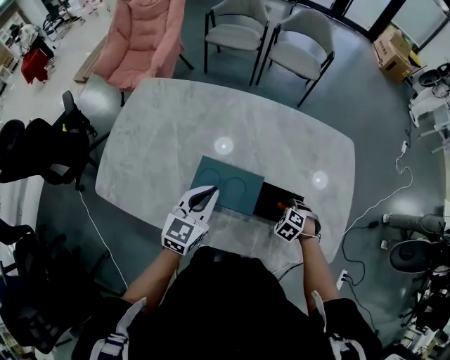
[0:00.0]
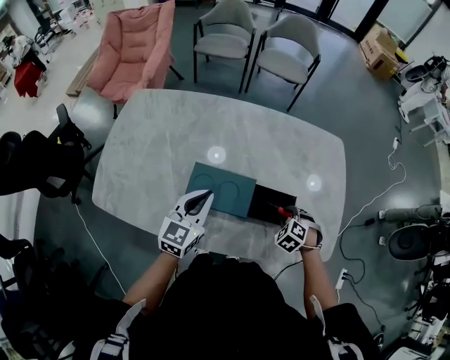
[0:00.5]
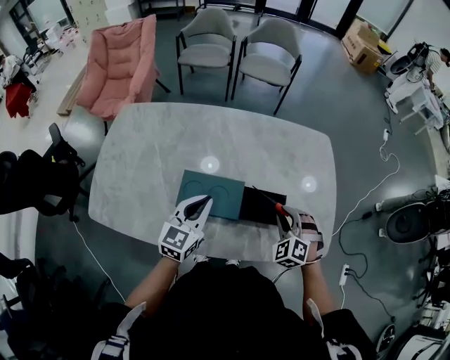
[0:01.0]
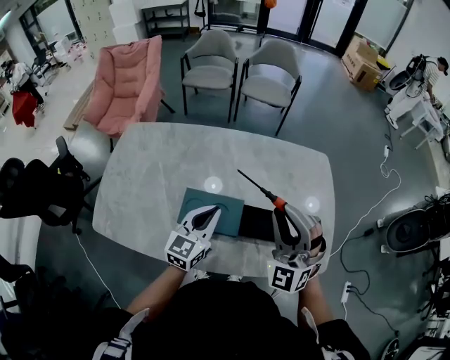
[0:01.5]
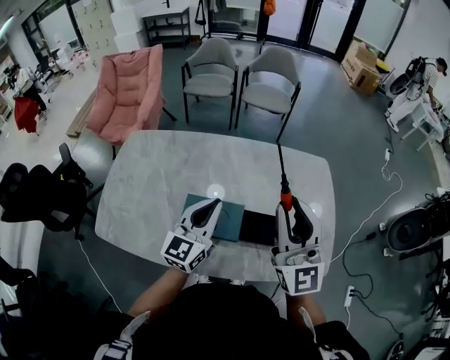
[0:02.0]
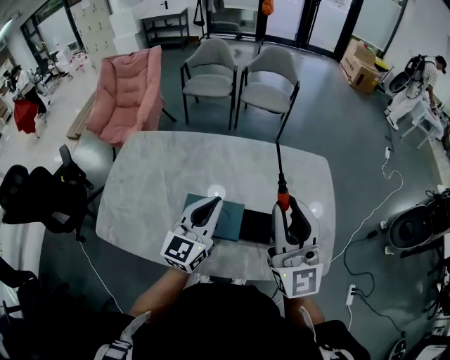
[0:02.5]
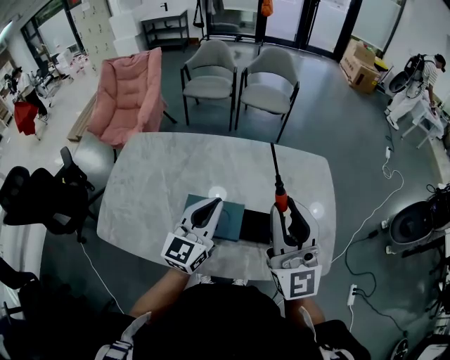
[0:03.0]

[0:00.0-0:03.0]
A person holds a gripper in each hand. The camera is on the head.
0:00.0 to 0:01.5: The left gripper ends up about 5 cm from where it was; the right gripper heads upward, covering about 40 cm, and tips its fingers upward by roughly 80 degrees.
0:01.5 to 0:03.0: Both grippers travel together upward, some 10 cm. The right gripper rotates around the line of its fingers by about 50 degrees, clockwise from behind.

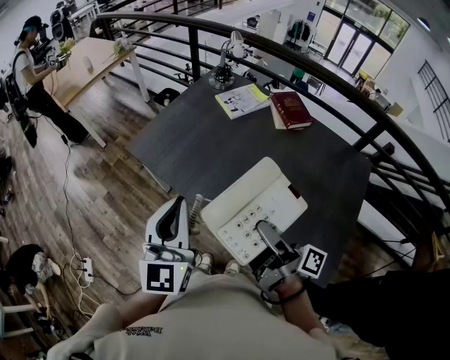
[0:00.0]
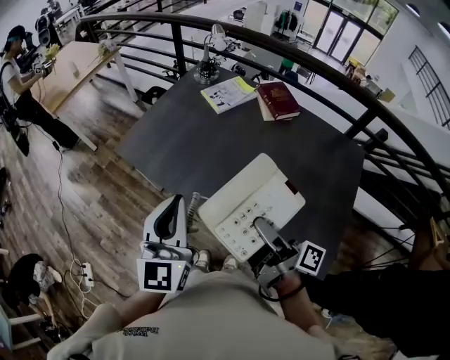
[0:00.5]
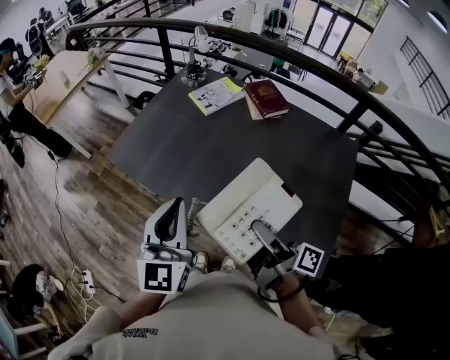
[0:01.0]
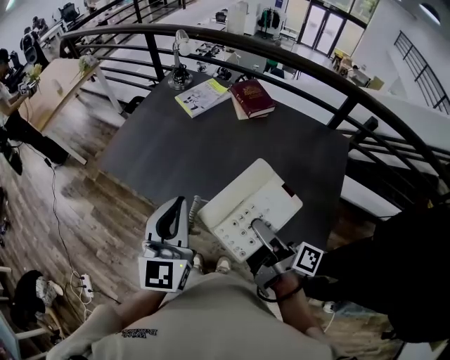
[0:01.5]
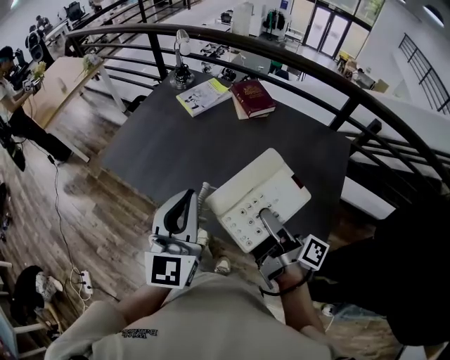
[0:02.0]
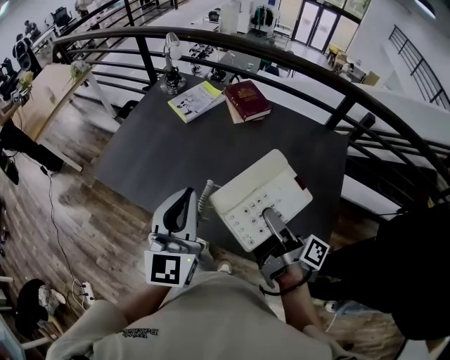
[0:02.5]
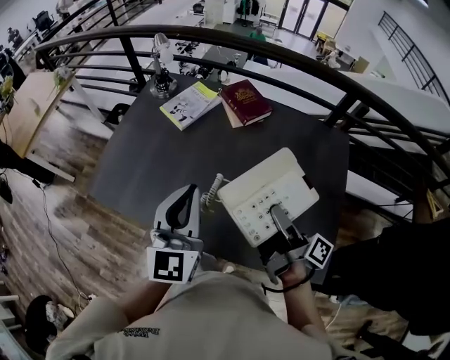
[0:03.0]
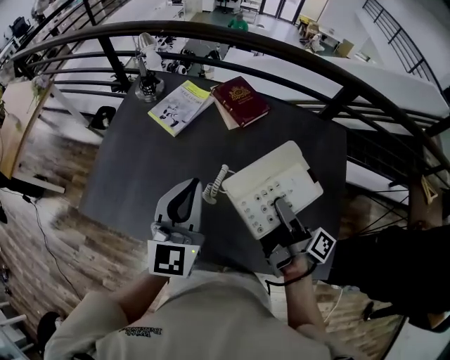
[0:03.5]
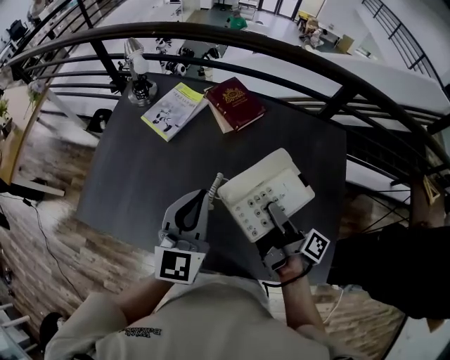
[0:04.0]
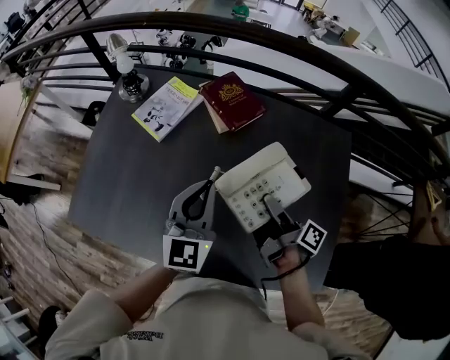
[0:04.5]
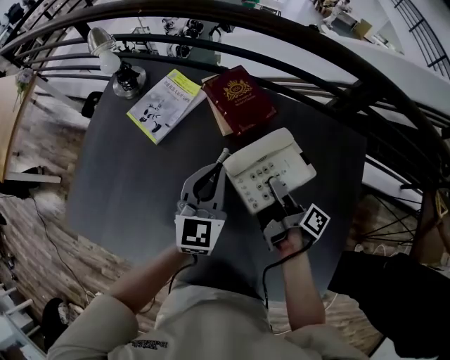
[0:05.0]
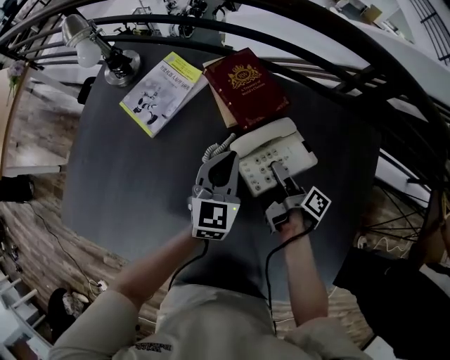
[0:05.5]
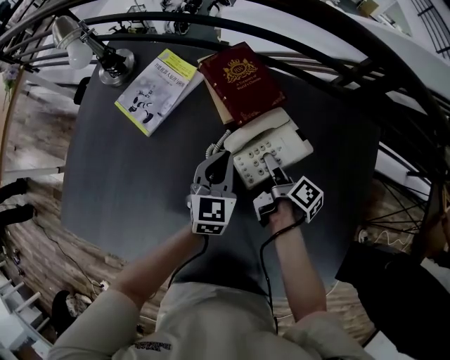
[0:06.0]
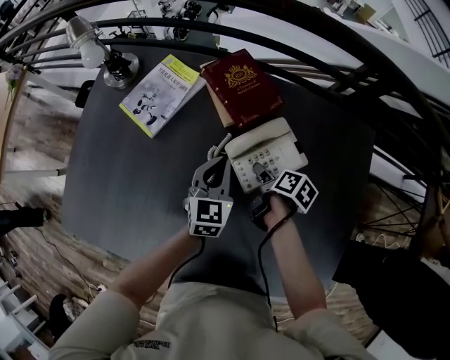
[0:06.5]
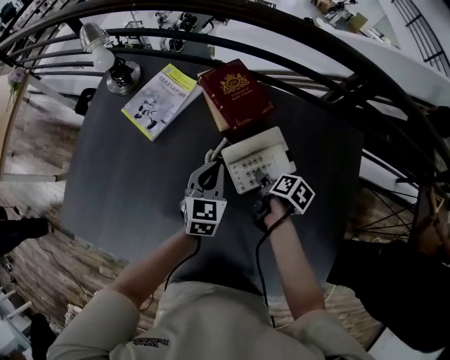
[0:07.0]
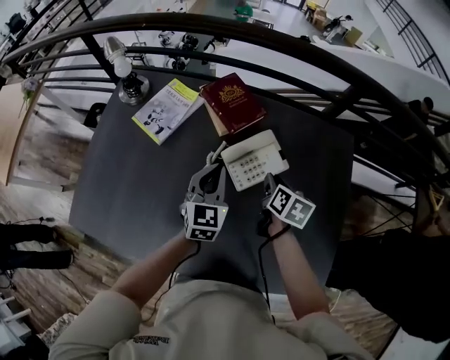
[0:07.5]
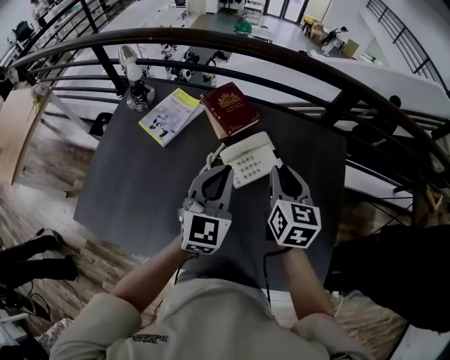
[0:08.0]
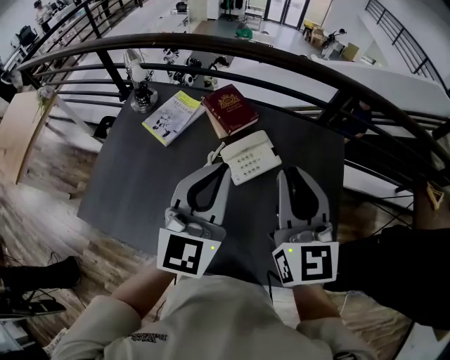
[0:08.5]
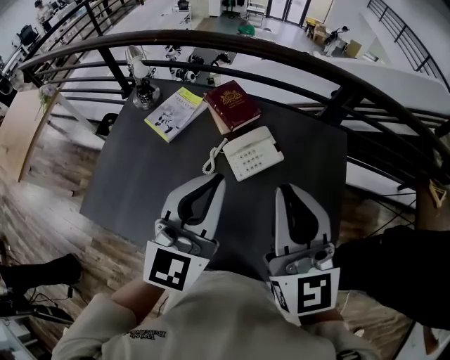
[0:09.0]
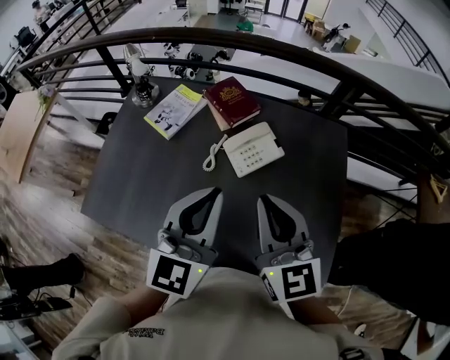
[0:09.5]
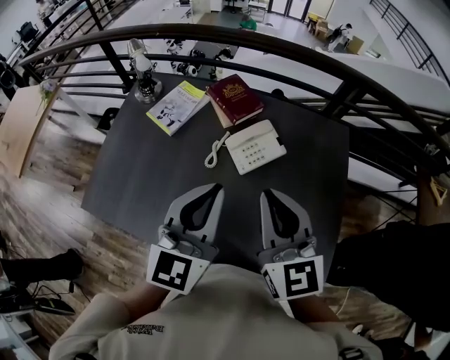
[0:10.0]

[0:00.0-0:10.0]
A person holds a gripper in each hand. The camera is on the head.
0:00.0 to 0:02.0: The two grippers go approximately 15 cm to the right.
0:02.0 to 0:04.0: Both grippers travel together forward, about 20 cm. The right gripper turns by some 20 degrees, while the left gripper turns by some 20 degrees.
0:04.0 to 0:06.0: The right gripper travels forward and downward by roughly 30 cm, and rotates approximately 30 degrees. Meanwhile the left gripper shifts about 30 cm downward and forward, and changes its angle by some 20 degrees.
0:06.0 to 0:08.0: The two grippers go about 25 cm upward and backward. The left gripper rotates some 20 degrees. The right gripper rotates around the line of its fingers by about 70 degrees, counterclockwise from behind, and opens, then closes once more.
0:08.0 to 0:10.0: The right gripper travels backward, upward and to the left by some 20 cm, and rotates roughly 20 degrees. The left gripper moves backward and upward, about 15 cm.

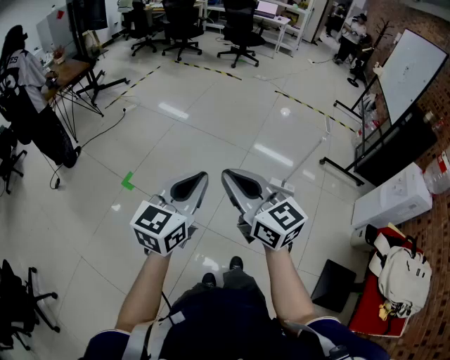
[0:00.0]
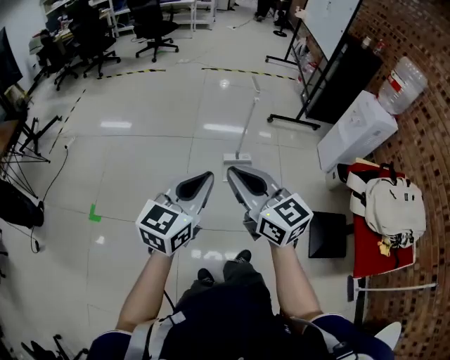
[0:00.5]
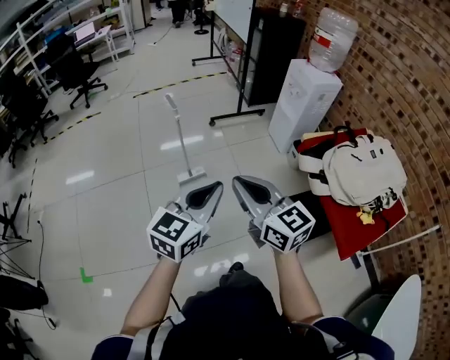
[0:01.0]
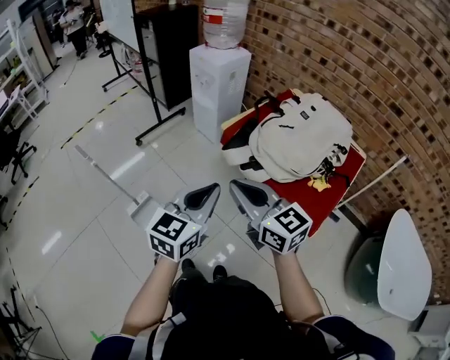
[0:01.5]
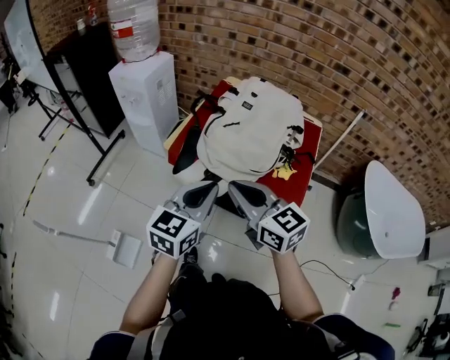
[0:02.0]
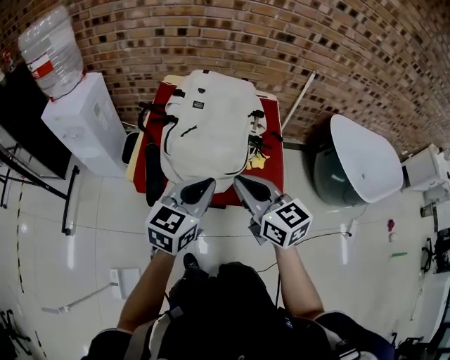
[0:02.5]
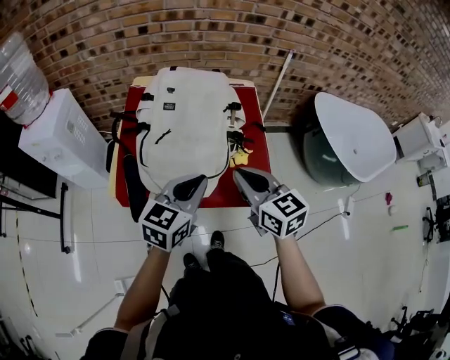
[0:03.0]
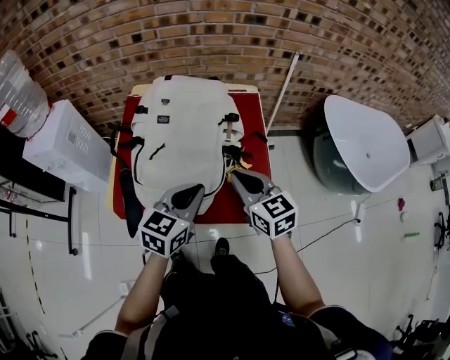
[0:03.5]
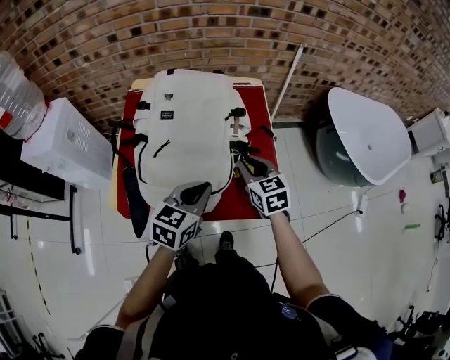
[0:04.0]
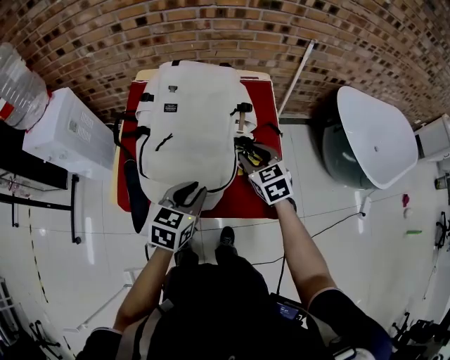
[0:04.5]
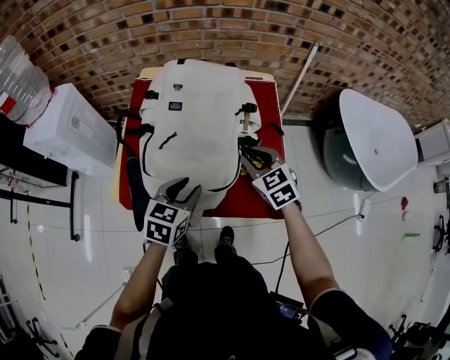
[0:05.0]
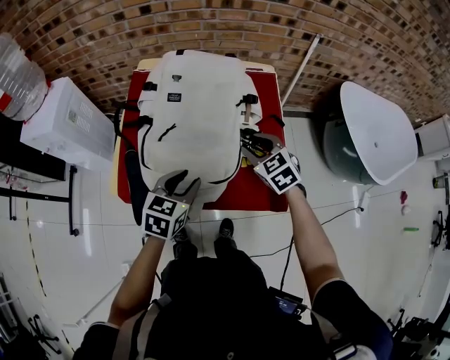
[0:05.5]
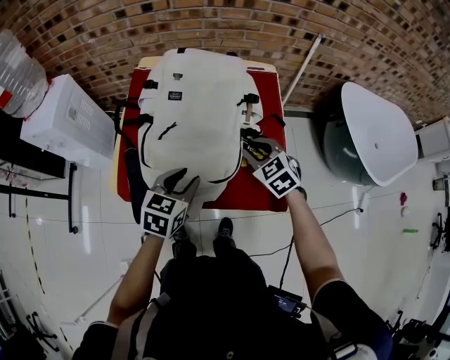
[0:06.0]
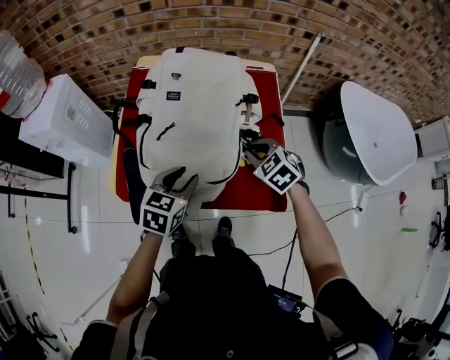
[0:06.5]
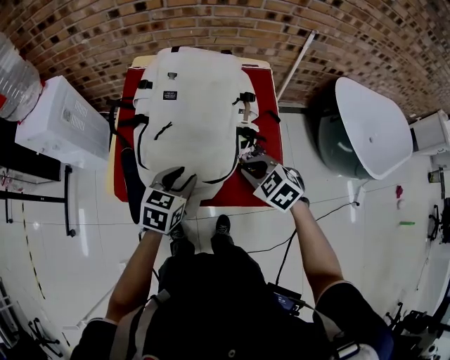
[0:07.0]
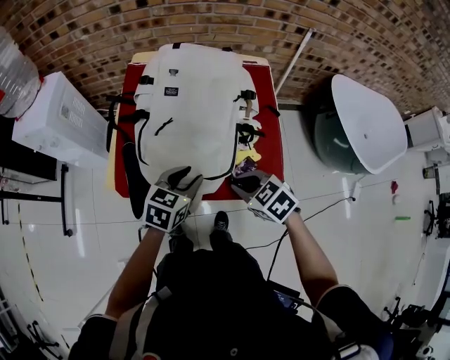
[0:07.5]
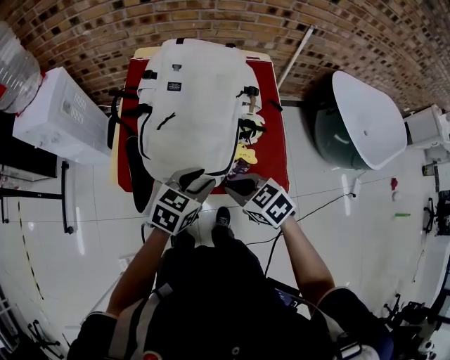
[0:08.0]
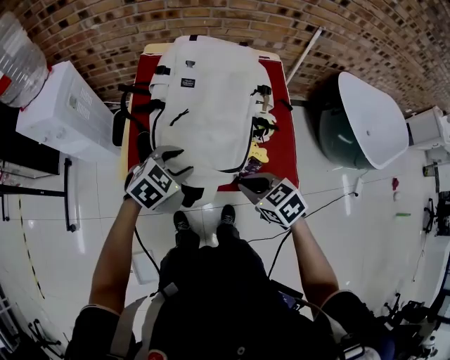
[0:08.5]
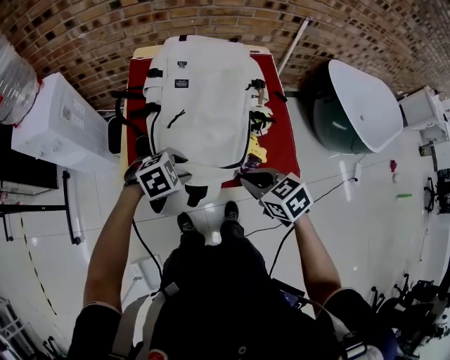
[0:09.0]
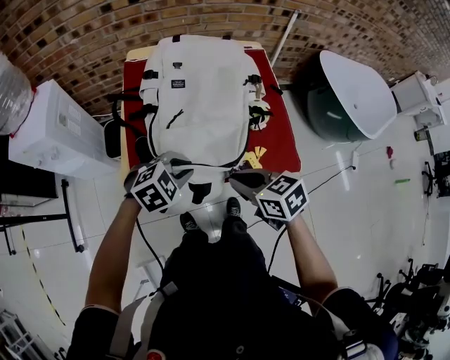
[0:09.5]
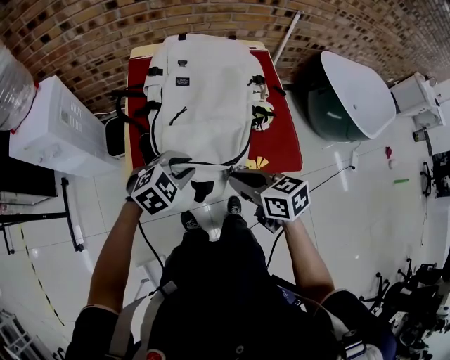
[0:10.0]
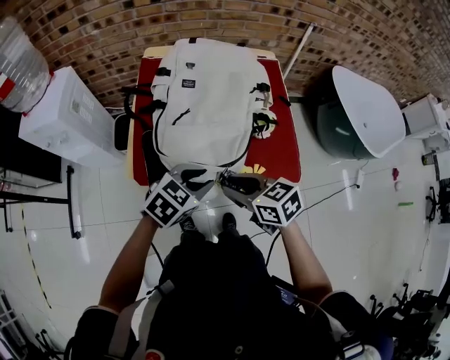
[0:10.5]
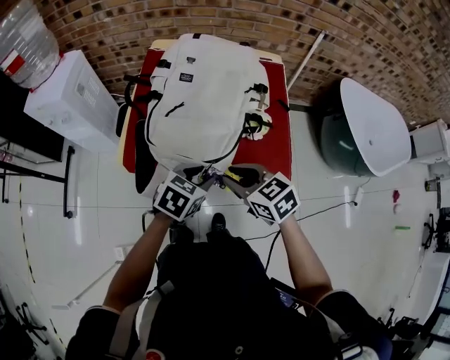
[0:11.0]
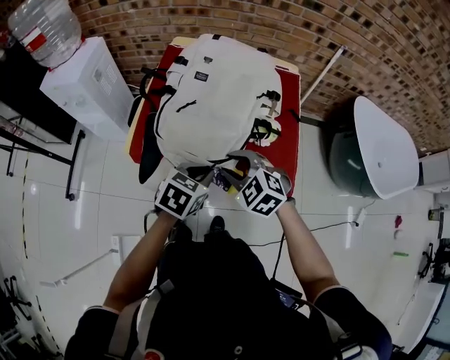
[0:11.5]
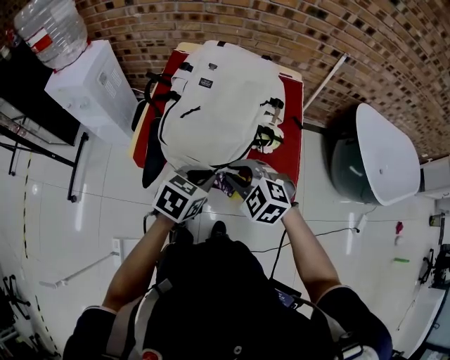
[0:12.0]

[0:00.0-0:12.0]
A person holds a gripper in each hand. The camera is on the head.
0:00.0 to 0:02.0: The two grippers travel together, approximately 80 cm. The left gripper turns by roughly 90 degrees. Meanwhile the right gripper changes its angle by roughly 90 degrees.
0:02.0 to 0:04.0: The right gripper changes place by about 30 cm, and rotates approximately 50 degrees; the left gripper changes place by roughly 20 cm, and turns by roughly 30 degrees.
0:04.0 to 0:06.0: The right gripper swivels approximately 30 degrees. The left gripper goes some 5 cm to the left, and opens its fingers.
0:06.0 to 0:08.0: The right gripper shifts about 20 cm backward and to the left, and changes its angle by about 20 degrees, while the left gripper shifts by approximately 5 cm.
0:08.0 to 0:10.0: The right gripper changes place by about 10 cm, and changes its angle by about 30 degrees, while the left gripper ends up about 10 cm from where it was, and swivels roughly 40 degrees.
0:10.0 to 0:12.0: The left gripper heads to the right, covering about 10 cm, and rolls counterclockwise, seen from behind, by some 40 degrees. The right gripper rolls counterclockwise, seen from behind, by roughly 70 degrees, and opens and closes again.

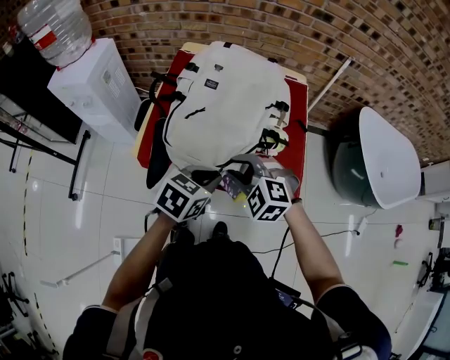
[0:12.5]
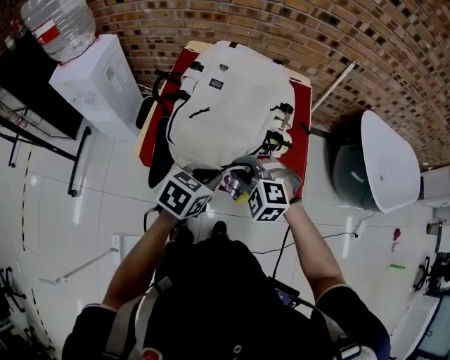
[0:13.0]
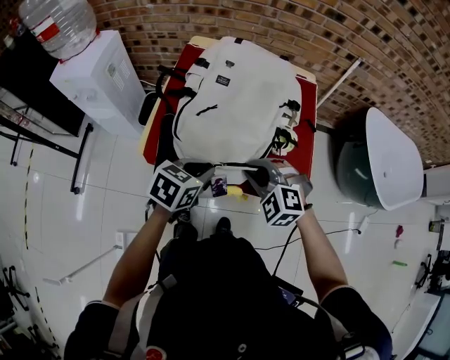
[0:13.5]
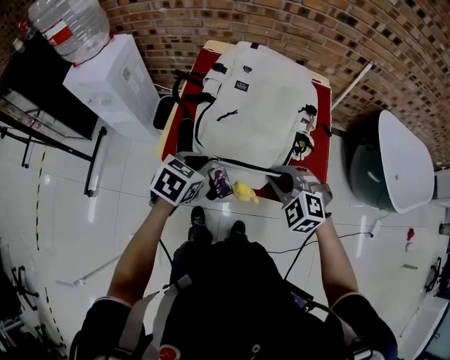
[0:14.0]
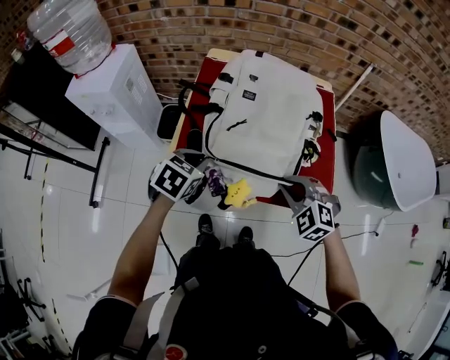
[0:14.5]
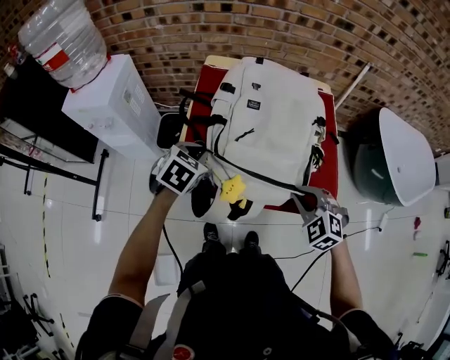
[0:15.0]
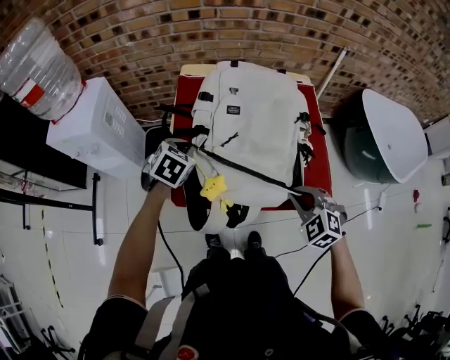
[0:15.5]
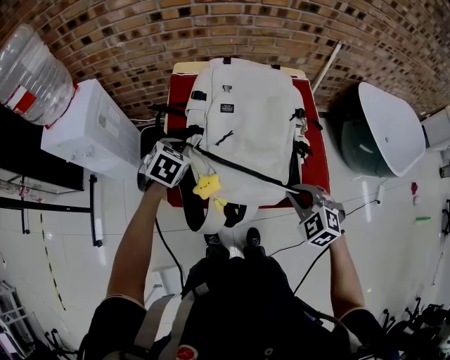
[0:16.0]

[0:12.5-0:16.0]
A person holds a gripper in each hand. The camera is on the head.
0:12.5 to 0:14.5: The left gripper travels to the left by some 15 cm.
0:14.5 to 0:16.0: The left gripper moves forward, approximately 10 cm.
